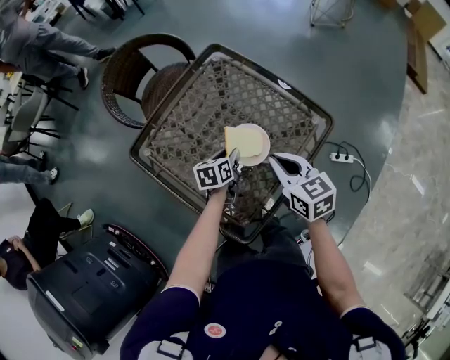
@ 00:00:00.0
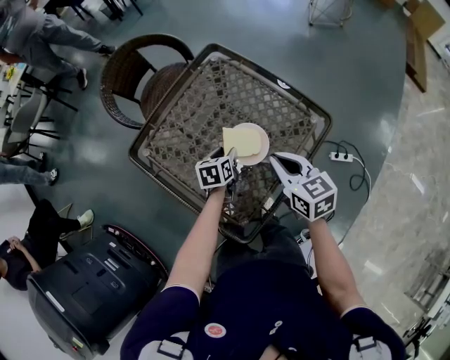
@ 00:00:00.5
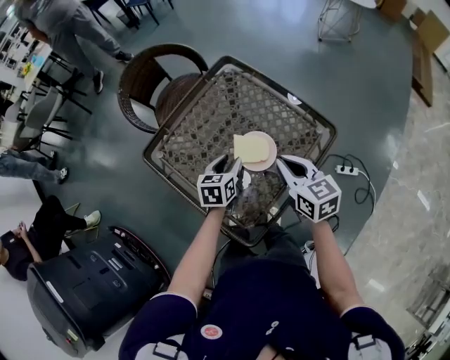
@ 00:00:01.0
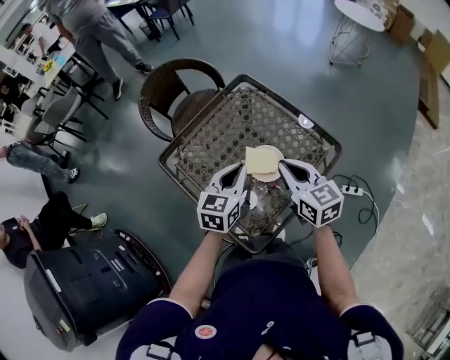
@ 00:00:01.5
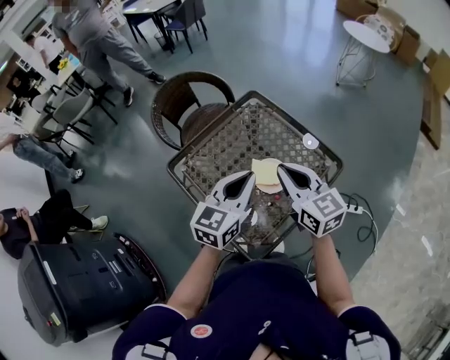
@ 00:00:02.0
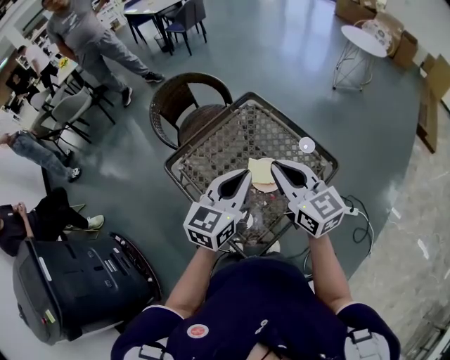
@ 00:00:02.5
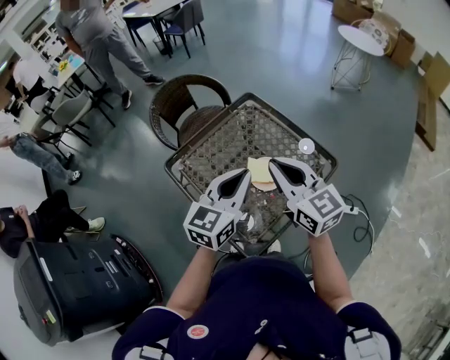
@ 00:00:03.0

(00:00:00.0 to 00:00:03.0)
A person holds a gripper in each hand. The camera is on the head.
00:00:00.0 - 00:00:01.5: The left gripper goes about 20 cm upward, rotates roughly 30 degrees, and closes; the right gripper shifts approximately 10 cm upward.
00:00:01.5 - 00:00:03.0: The right gripper goes roughly 10 cm upward, while the left gripper shifts about 15 cm upward and backward.

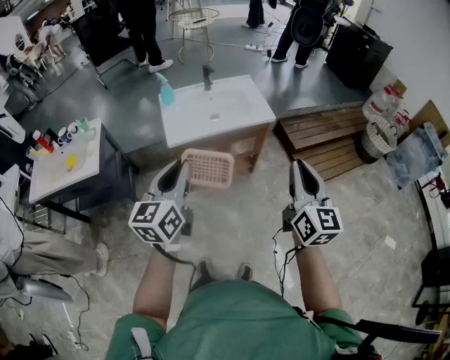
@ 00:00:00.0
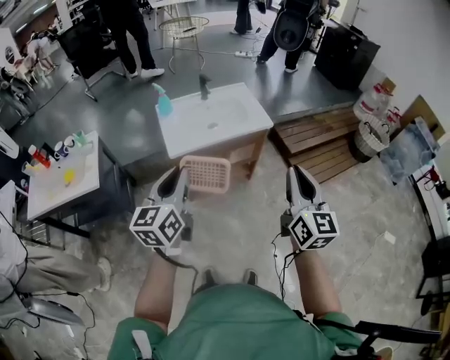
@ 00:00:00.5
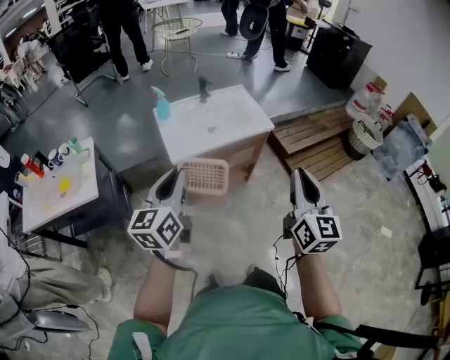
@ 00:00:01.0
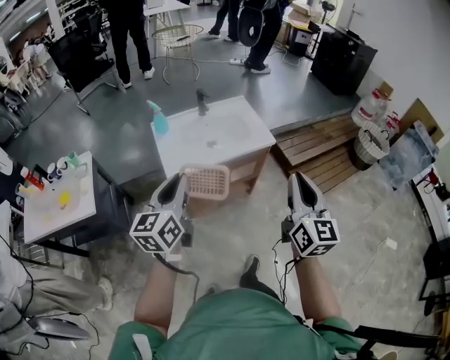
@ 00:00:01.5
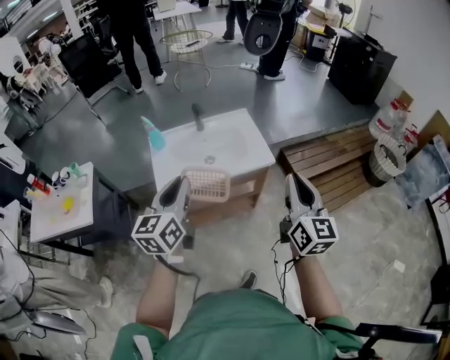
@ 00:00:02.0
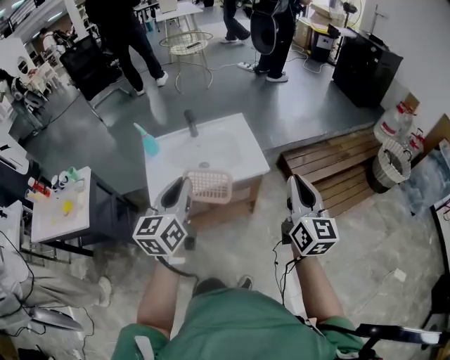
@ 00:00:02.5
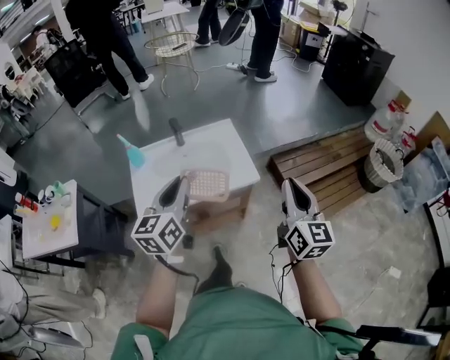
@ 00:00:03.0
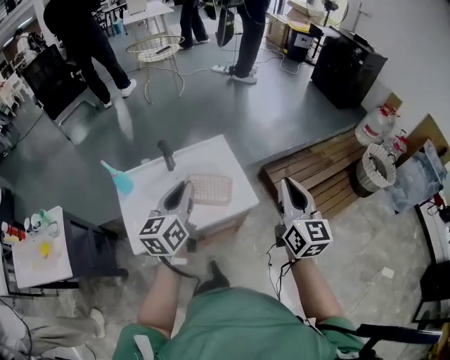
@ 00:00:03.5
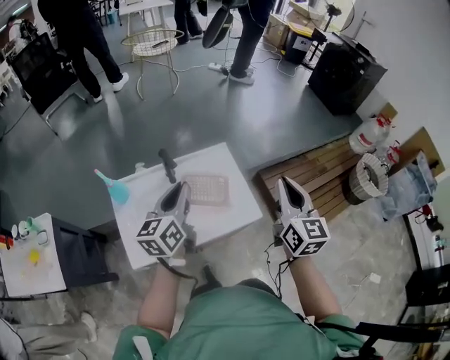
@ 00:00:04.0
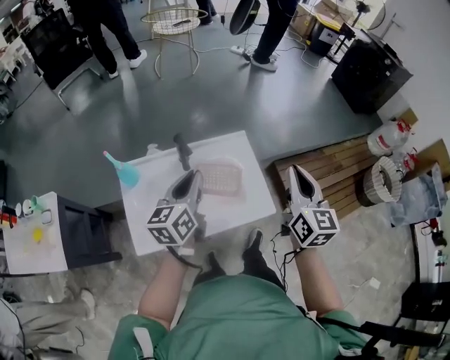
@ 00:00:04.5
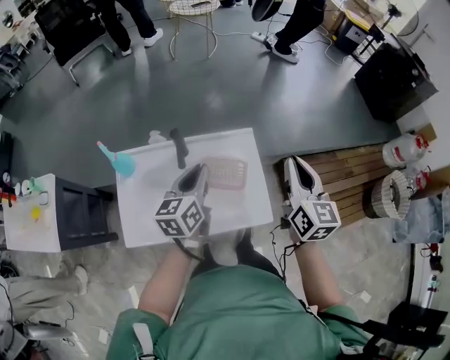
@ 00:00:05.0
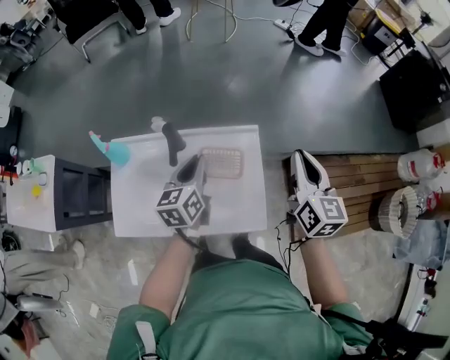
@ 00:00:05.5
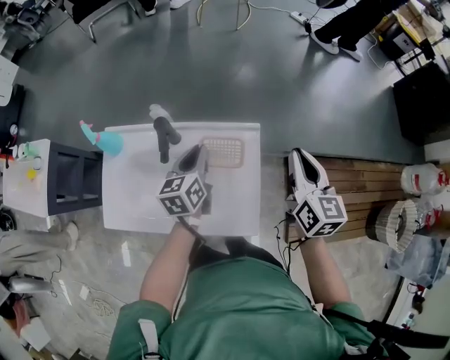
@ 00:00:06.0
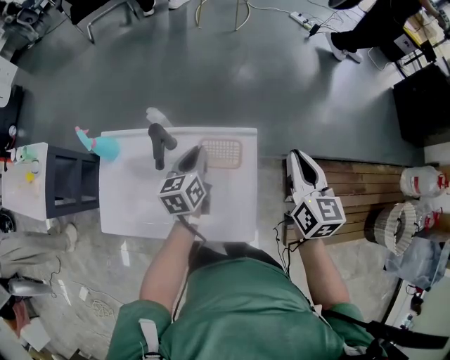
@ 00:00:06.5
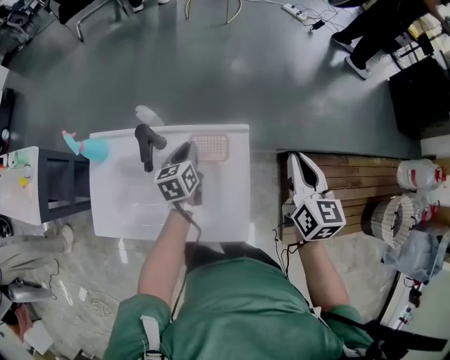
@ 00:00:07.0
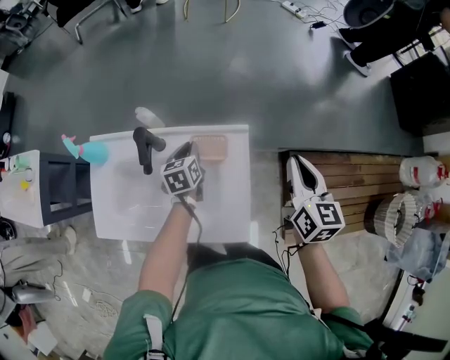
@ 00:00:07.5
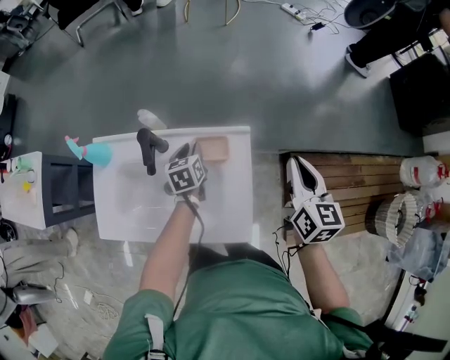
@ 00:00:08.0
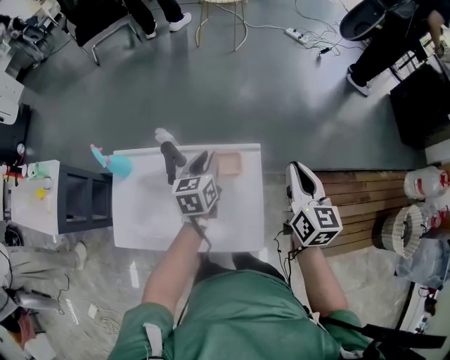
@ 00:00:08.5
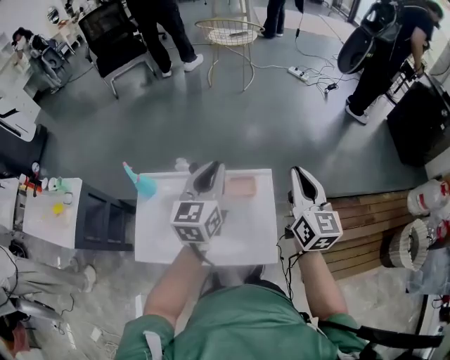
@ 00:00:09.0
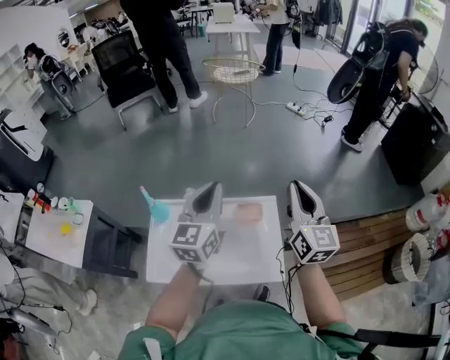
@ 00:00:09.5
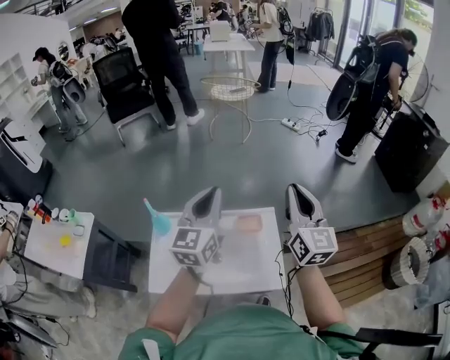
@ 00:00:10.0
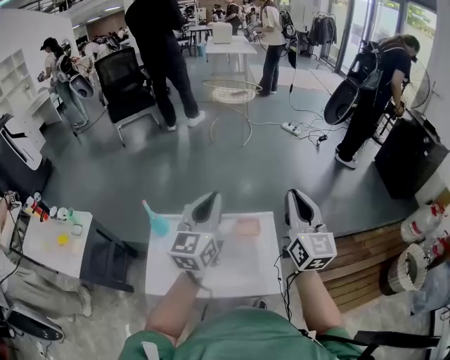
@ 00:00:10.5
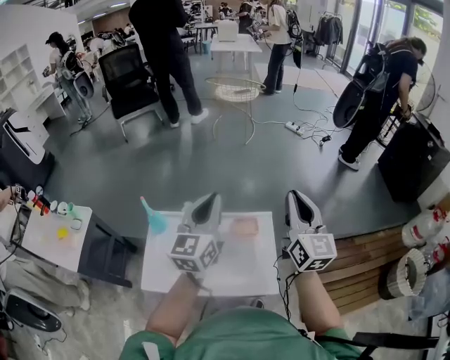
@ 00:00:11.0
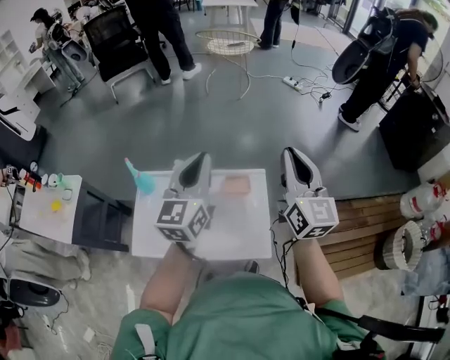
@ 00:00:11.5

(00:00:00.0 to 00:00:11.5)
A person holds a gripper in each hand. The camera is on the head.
00:00:00.0 - 00:00:02.0: The grippers both shift forward by approximately 25 cm.
00:00:02.0 - 00:00:04.0: Both grippers travel together forward, approximately 35 cm.
00:00:04.0 - 00:00:06.0: Both grippers travel together forward and downward, about 30 cm. The left gripper rotates approximately 30 degrees, while the right gripper swivels about 30 degrees.
00:00:06.0 - 00:00:07.5: The right gripper changes place by approximately 5 cm, while the left gripper heads downward and forward, covering some 15 cm.
00:00:07.5 - 00:00:09.5: The left gripper heads upward, covering roughly 40 cm, and angles its fingers upward, by about 40 degrees, while the right gripper moves upward and to the left, about 30 cm, and swivels about 30 degrees.
00:00:09.5 - 00:00:11.5: The grippers make only small movements.

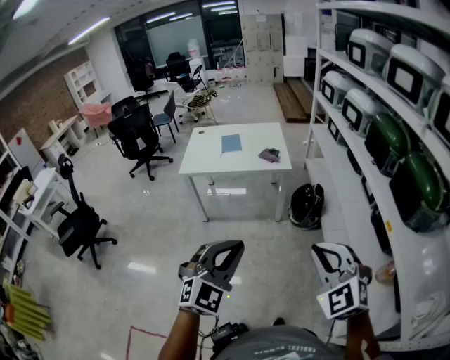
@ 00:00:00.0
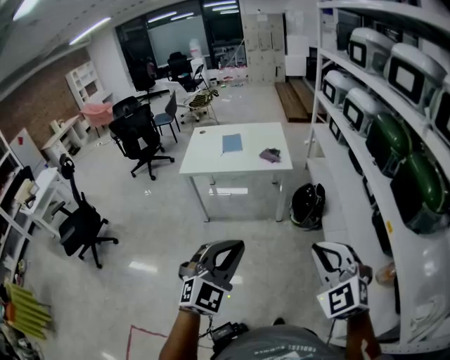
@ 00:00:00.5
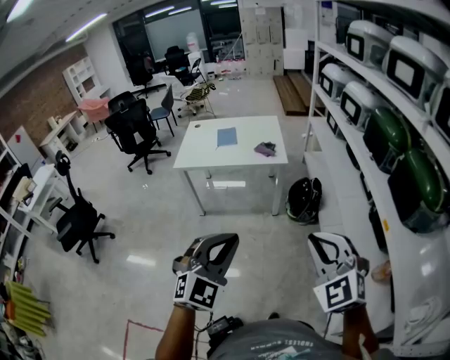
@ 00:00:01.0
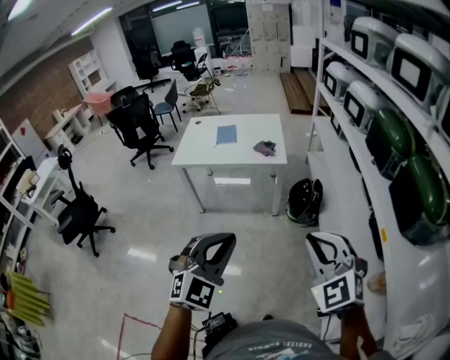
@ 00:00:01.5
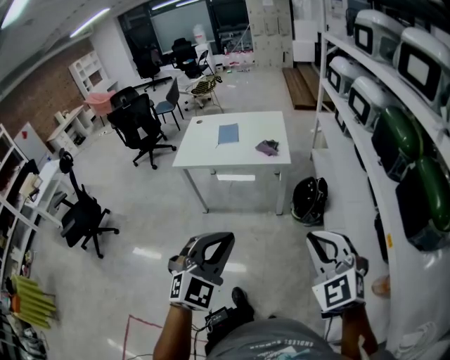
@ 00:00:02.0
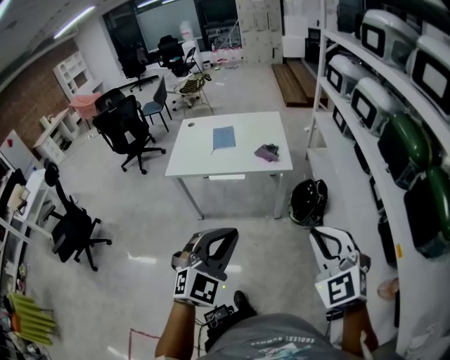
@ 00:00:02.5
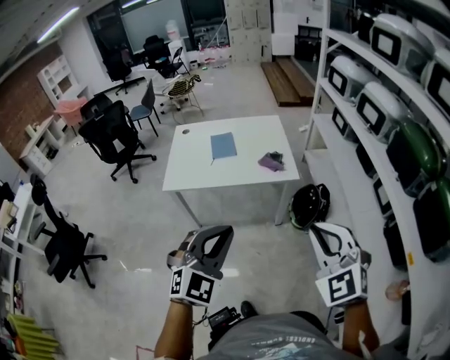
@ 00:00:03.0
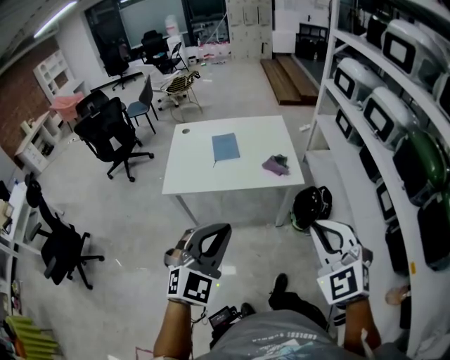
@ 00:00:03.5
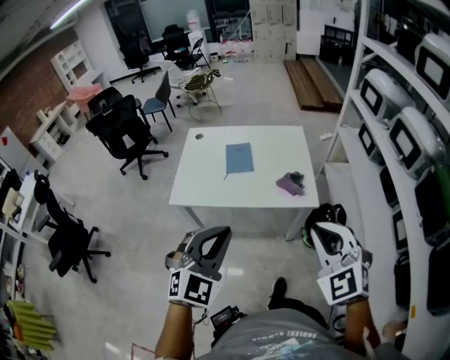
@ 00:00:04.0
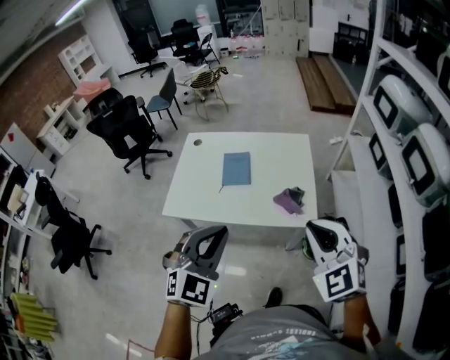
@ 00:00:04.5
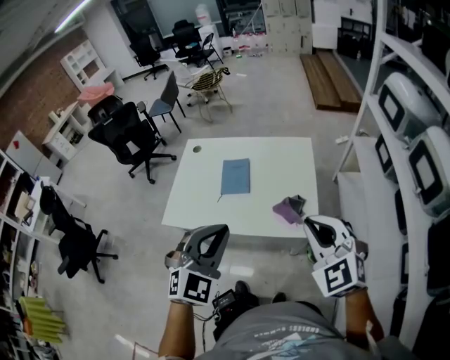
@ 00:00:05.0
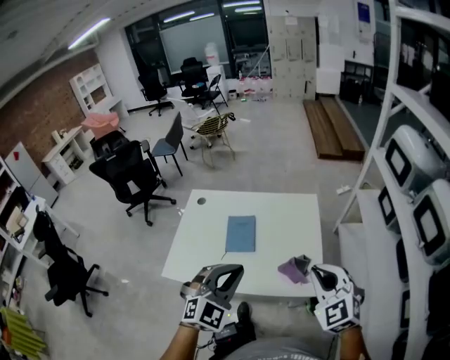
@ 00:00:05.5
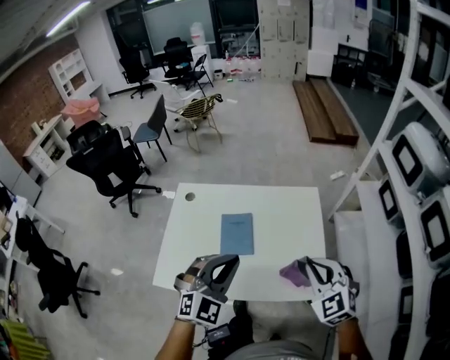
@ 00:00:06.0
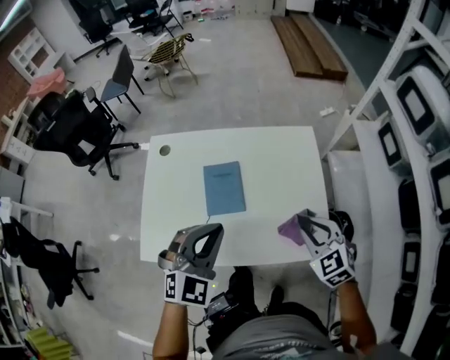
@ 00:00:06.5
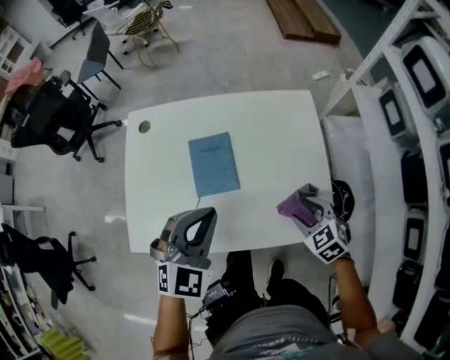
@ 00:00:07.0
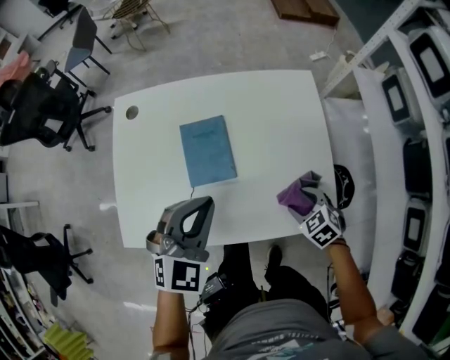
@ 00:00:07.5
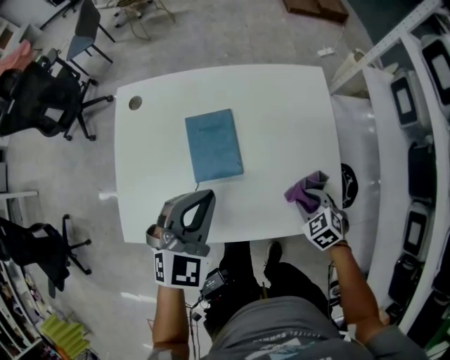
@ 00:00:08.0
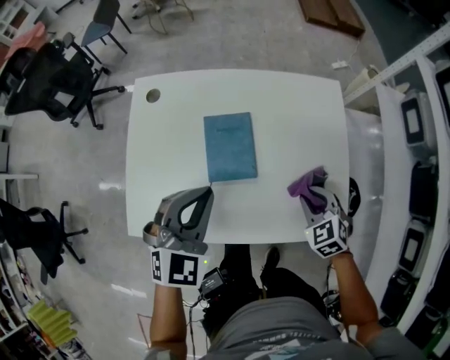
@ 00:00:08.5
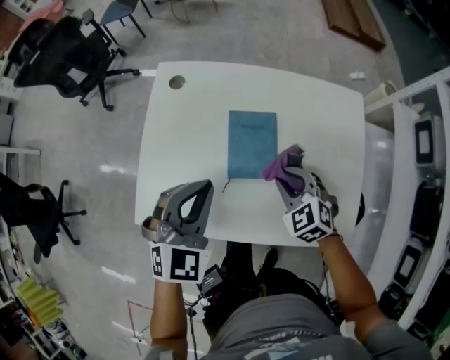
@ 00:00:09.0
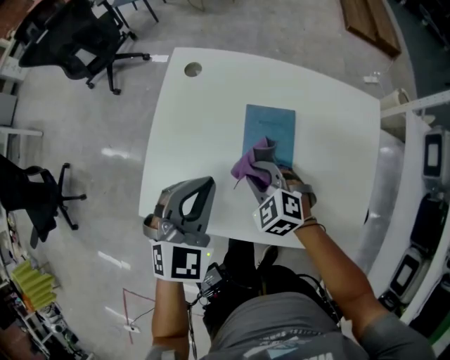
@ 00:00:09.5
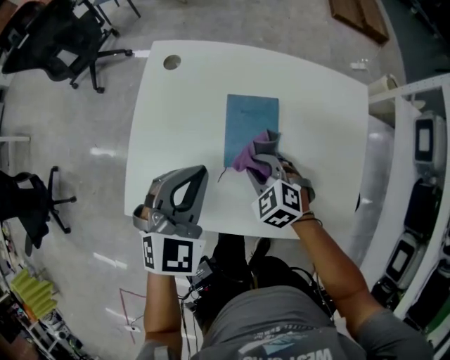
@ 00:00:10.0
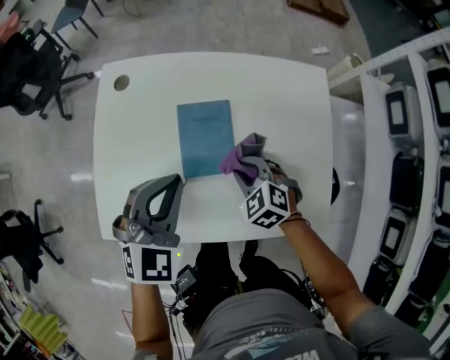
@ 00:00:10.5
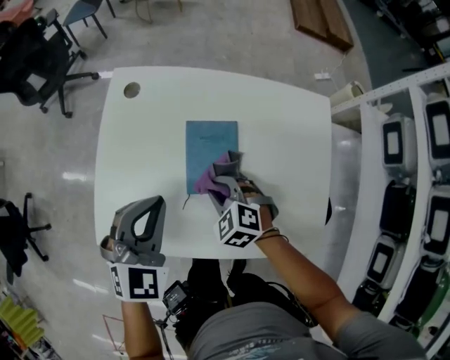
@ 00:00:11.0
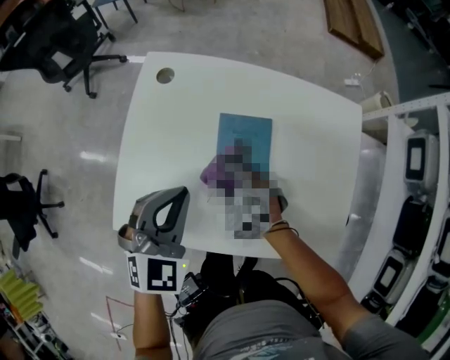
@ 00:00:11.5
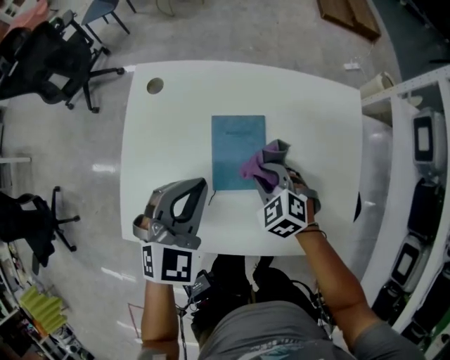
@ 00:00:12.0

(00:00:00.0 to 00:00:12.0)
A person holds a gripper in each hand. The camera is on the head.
00:00:00.0 - 00:00:02.0: The grippers both shift forward and to the right by some 10 cm.
00:00:02.0 - 00:00:04.0: The two grippers go roughly 40 cm forward and to the left.
00:00:04.0 - 00:00:06.0: The grippers both shift forward by approximately 35 cm.
00:00:06.0 - 00:00:08.0: The left gripper moves downward and forward, about 15 cm. The right gripper is displaced downward by about 35 cm, angles its fingers downward, by some 30 degrees, and opens up.
00:00:08.0 - 00:00:10.0: The left gripper goes approximately 10 cm to the left, while the right gripper moves to the left and forward, some 30 cm, and swivels approximately 30 degrees.
00:00:10.0 - 00:00:12.0: The left gripper swings left and right, about 5 cm each way, with 2 reversals, while the right gripper swings left and right, about 15 cm each way, with 2 reversals.
